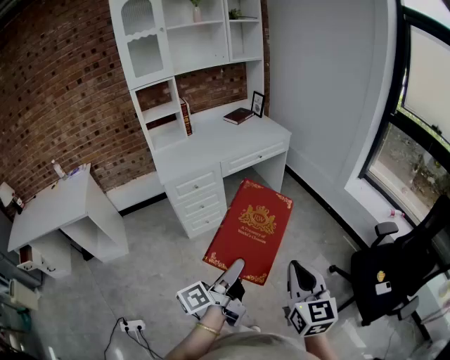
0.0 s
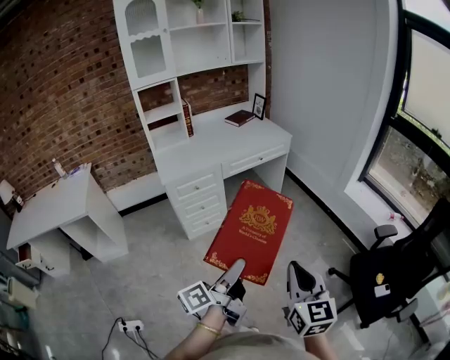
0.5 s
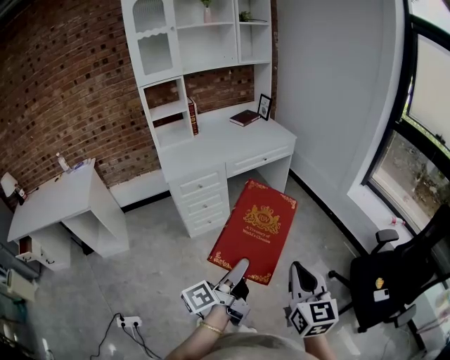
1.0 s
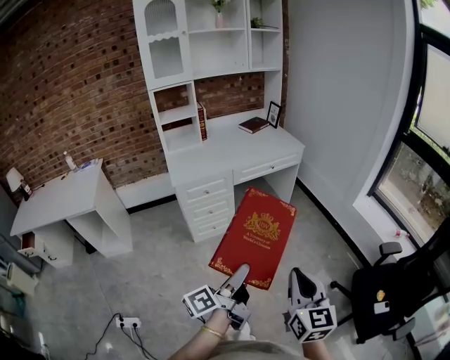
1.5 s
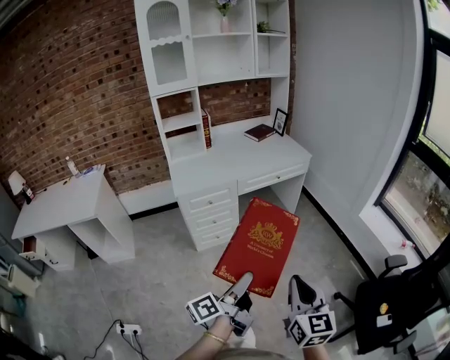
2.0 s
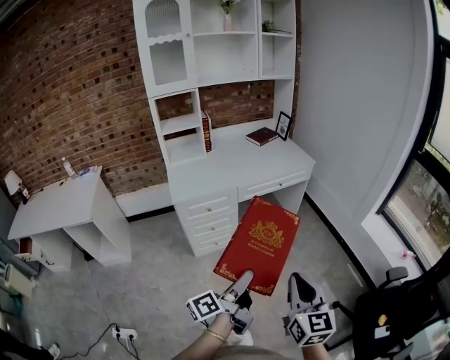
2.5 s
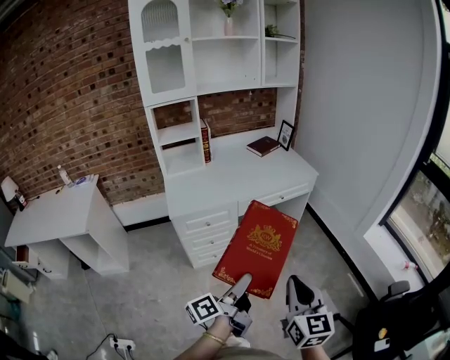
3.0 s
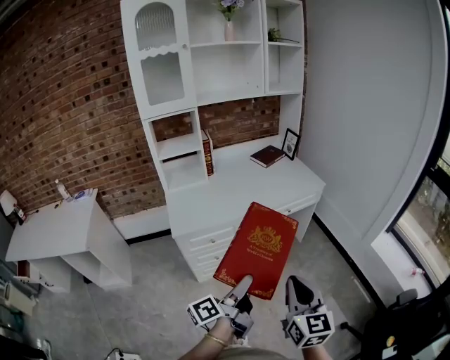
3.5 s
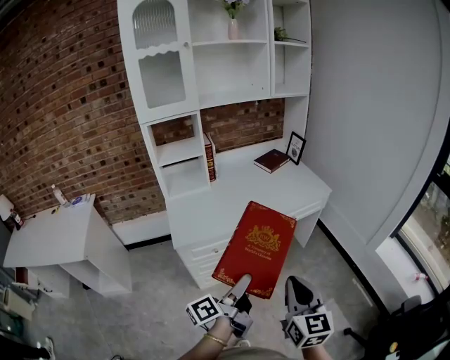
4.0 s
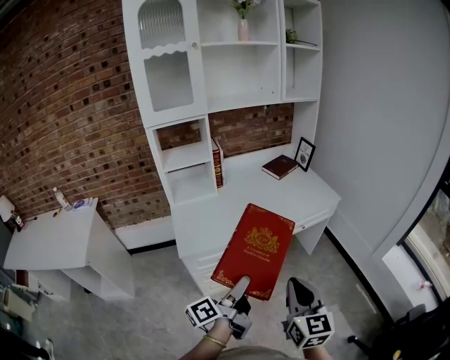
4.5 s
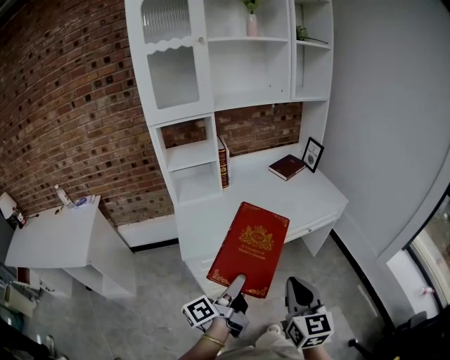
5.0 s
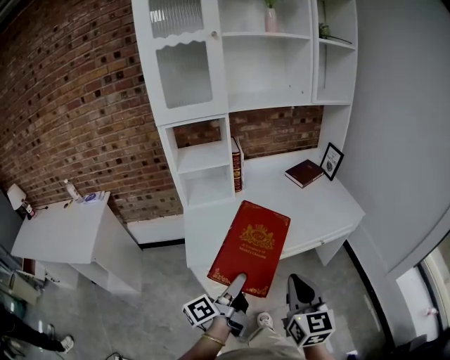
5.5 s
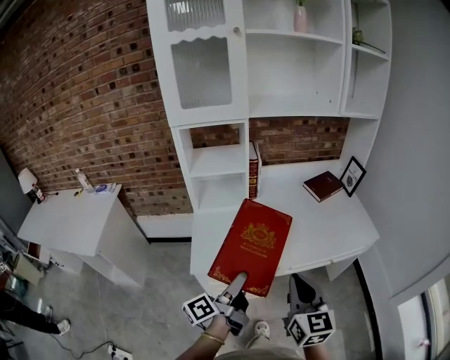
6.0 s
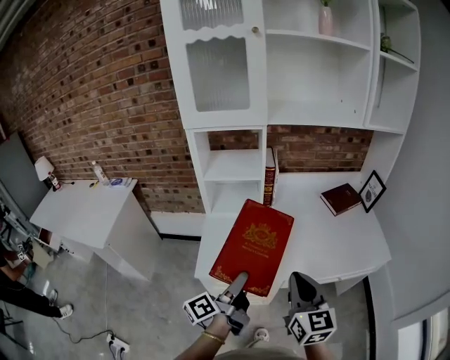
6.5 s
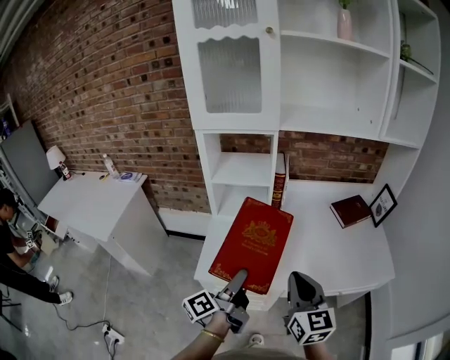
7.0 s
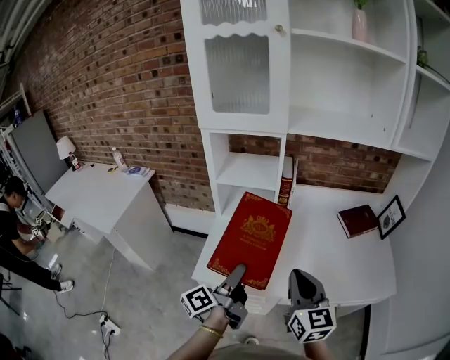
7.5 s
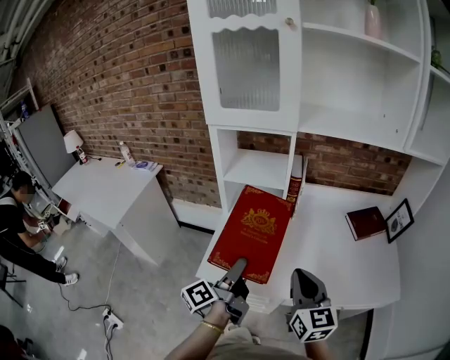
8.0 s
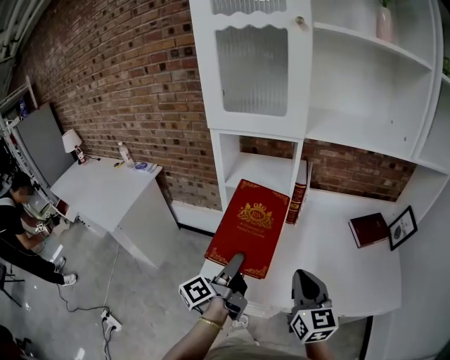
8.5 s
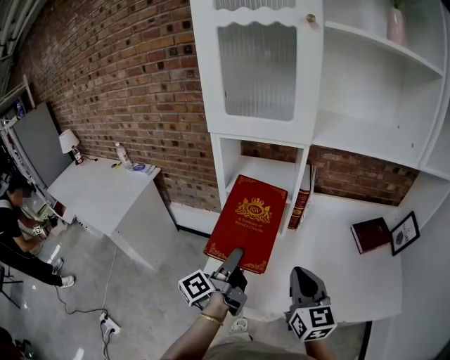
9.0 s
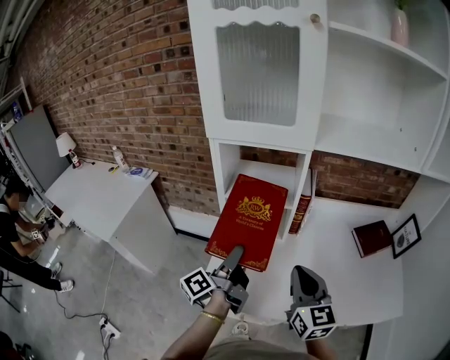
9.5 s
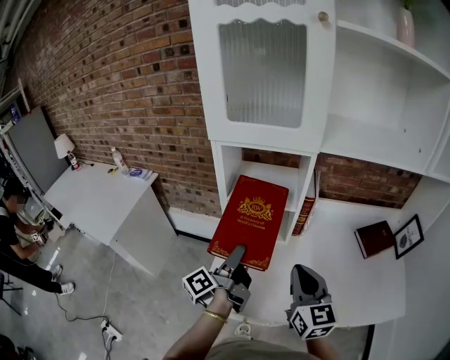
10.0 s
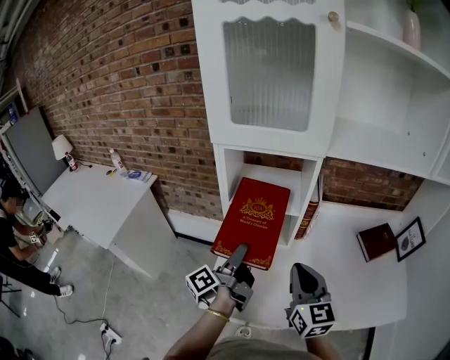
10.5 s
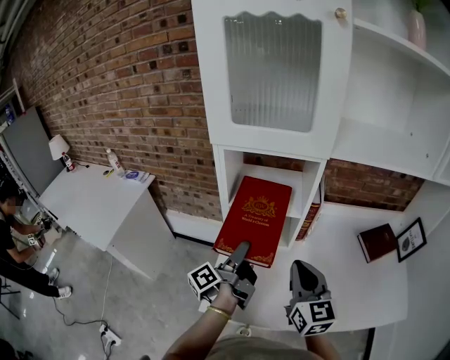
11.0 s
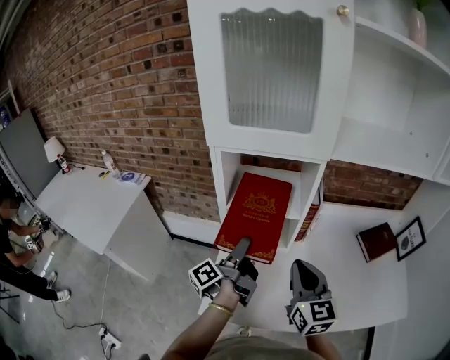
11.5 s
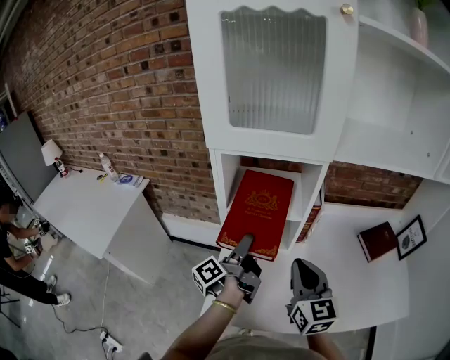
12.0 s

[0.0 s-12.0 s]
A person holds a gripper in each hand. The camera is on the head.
0.0 to 2.0 s: The right gripper shifts by about 5 cm.
2.0 to 4.0 s: The right gripper ends up about 30 cm from where it was.
4.0 to 6.0 s: The right gripper ends up roughly 25 cm from where it was.
6.0 to 8.0 s: The right gripper shifts by about 15 cm, and changes its angle by about 20 degrees.
8.0 to 10.0 s: The right gripper shifts by roughly 15 cm.
10.0 to 12.0 s: The right gripper moves approximately 5 cm.

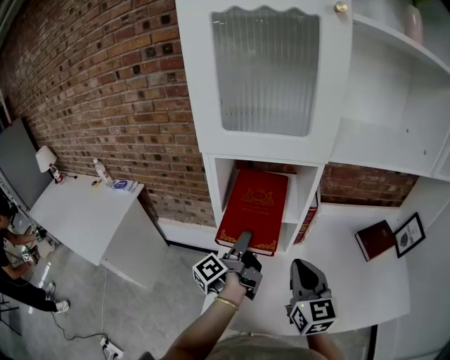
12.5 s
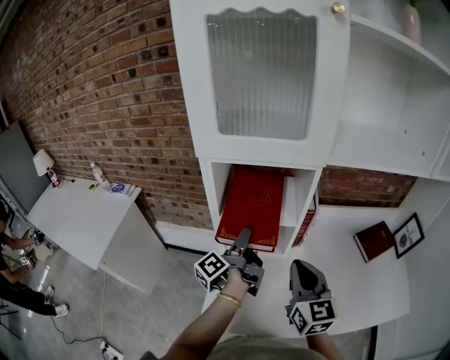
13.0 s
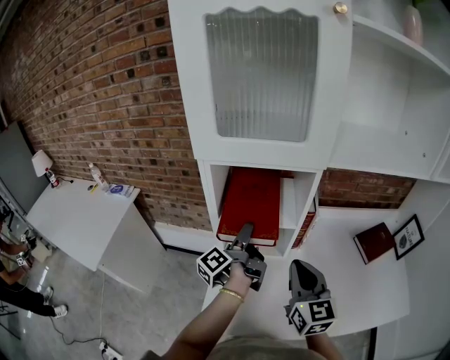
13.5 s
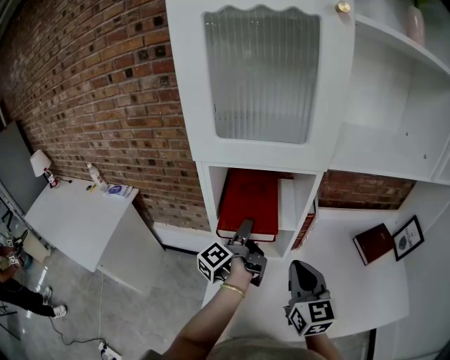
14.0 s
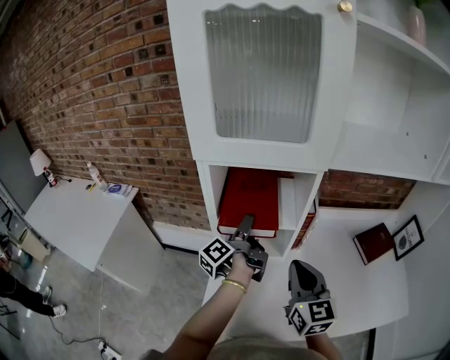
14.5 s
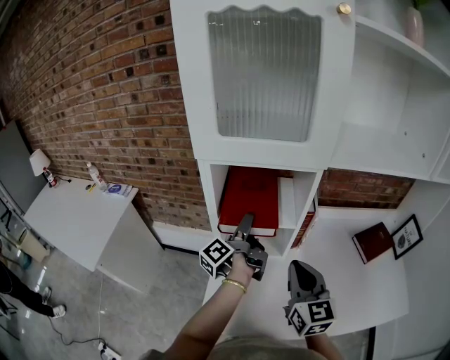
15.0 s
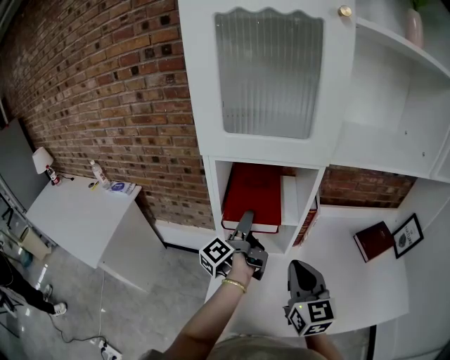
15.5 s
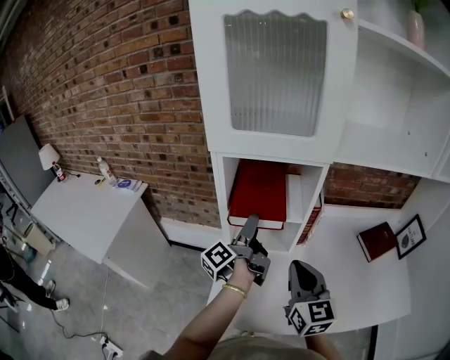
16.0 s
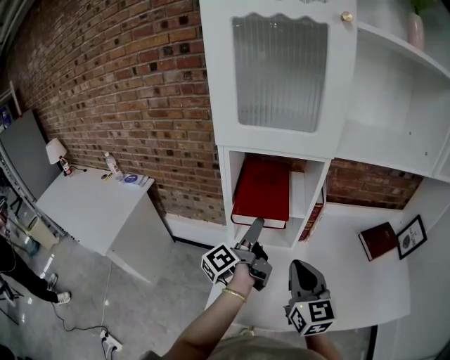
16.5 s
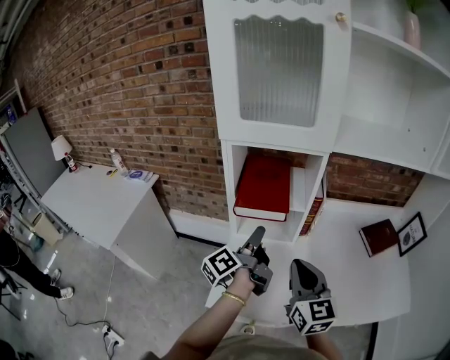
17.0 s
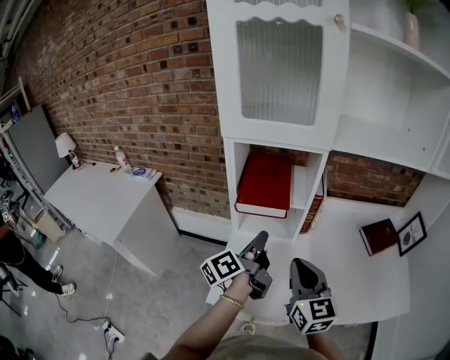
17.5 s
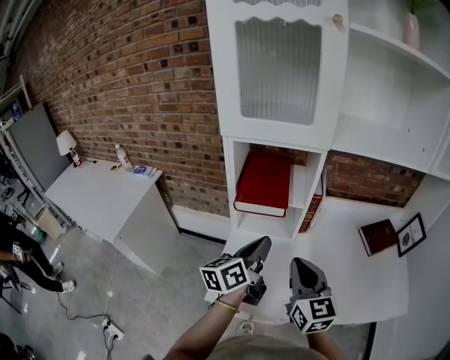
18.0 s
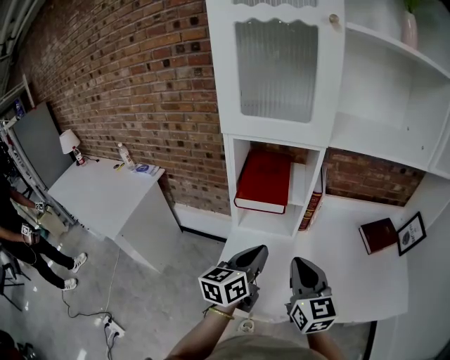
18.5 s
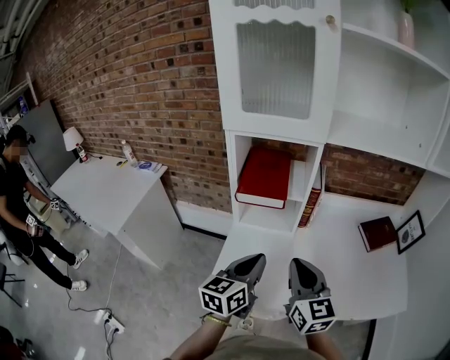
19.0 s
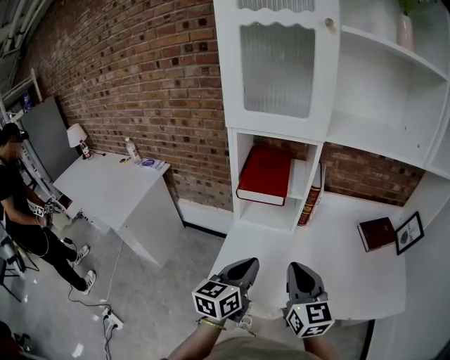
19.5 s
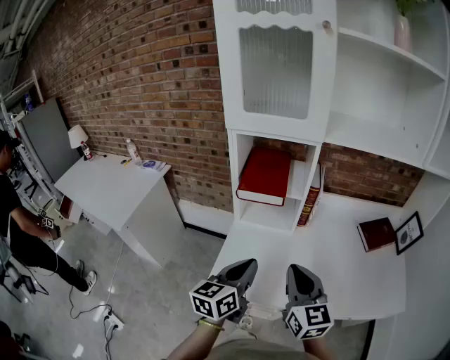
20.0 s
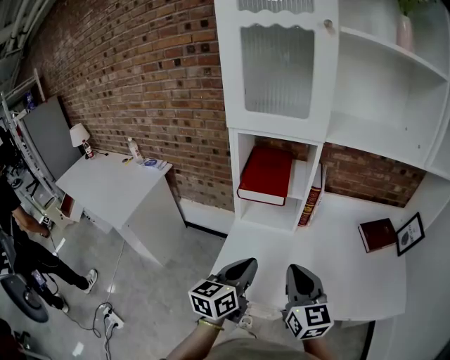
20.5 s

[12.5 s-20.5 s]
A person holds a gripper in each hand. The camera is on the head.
14.5 to 16.5 s: The right gripper ends up some 5 cm from where it was.
16.5 to 18.5 s: The right gripper moves about 5 cm.
18.5 to 20.5 s: The right gripper shifts by some 5 cm.

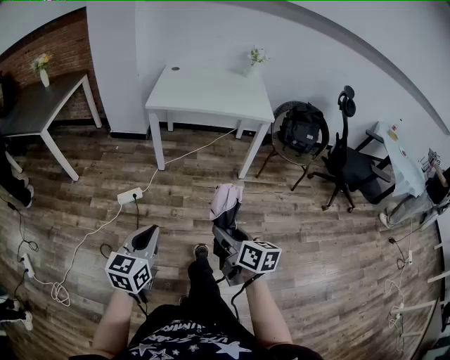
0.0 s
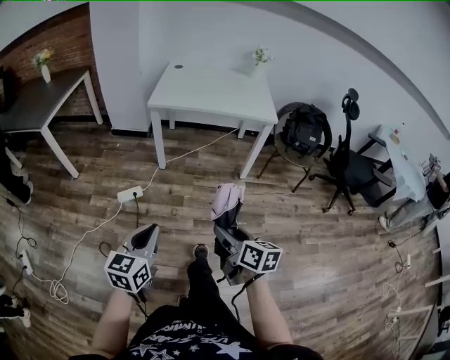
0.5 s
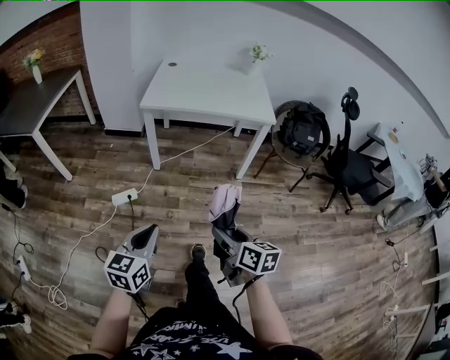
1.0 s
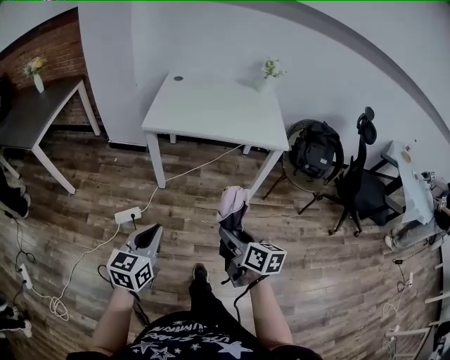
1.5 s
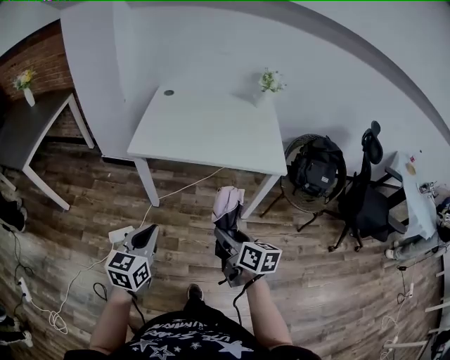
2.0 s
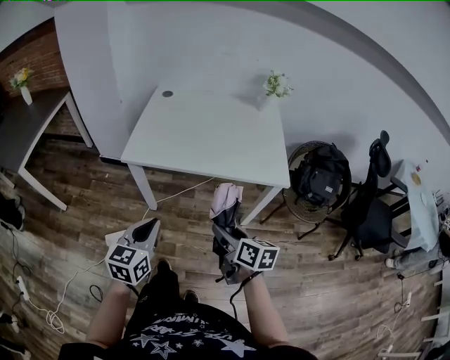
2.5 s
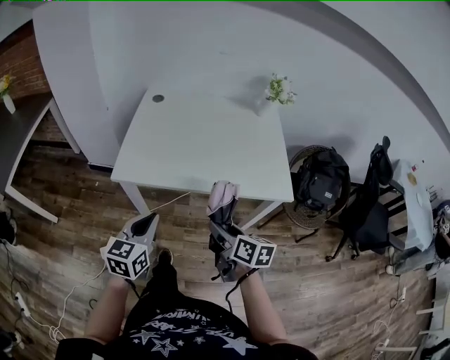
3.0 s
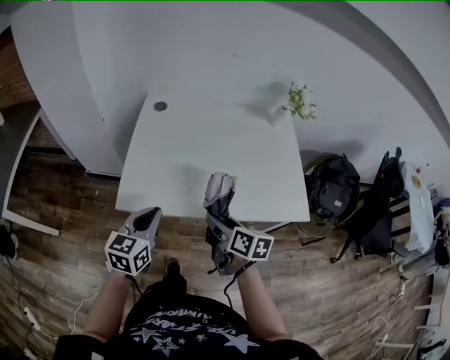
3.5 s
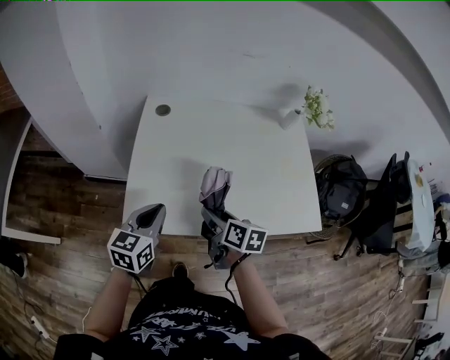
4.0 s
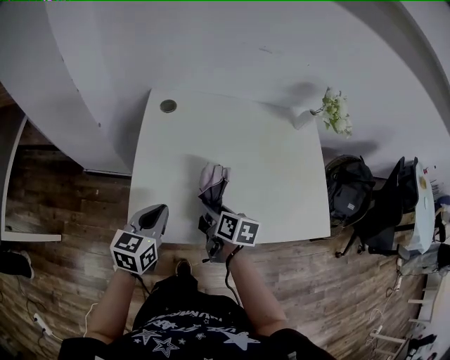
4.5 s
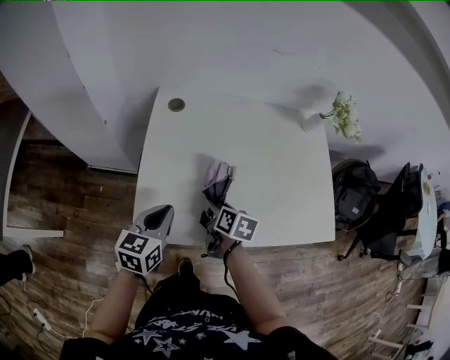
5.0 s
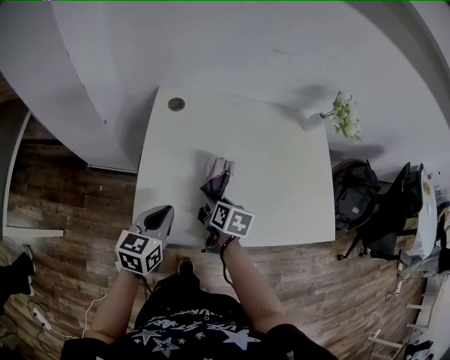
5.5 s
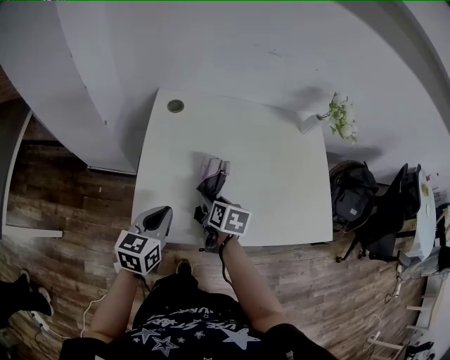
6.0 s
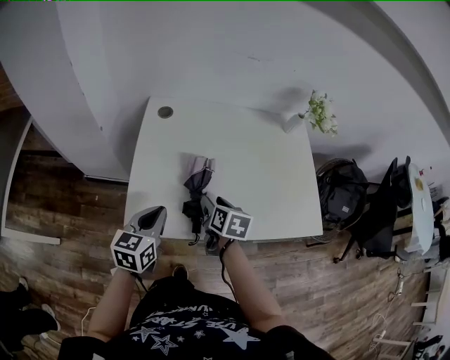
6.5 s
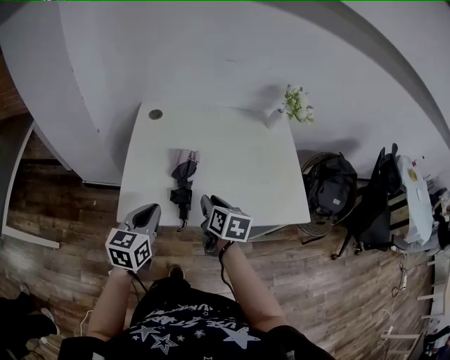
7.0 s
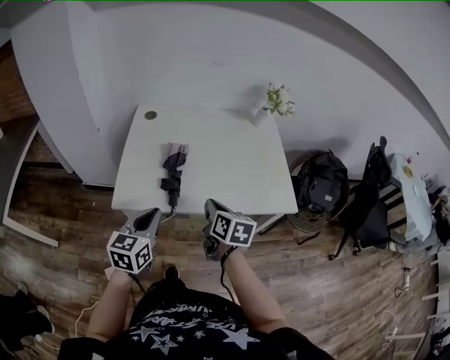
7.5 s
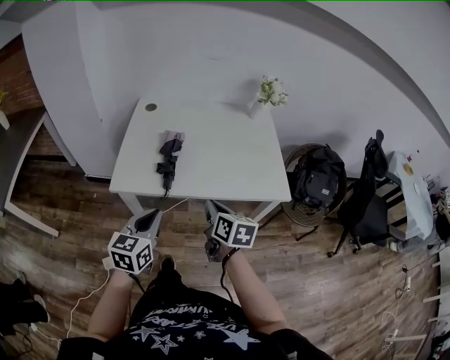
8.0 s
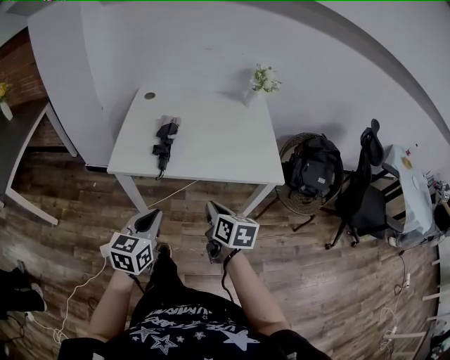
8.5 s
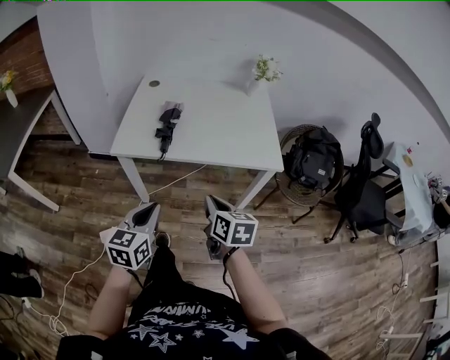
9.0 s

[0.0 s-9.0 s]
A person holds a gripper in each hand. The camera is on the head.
0.0 to 2.0 s: Both grippers move forward, some 35 cm.
2.0 to 4.5 s: Both grippers are carried forward, approximately 50 cm. The right gripper turns by about 20 degrees.
4.5 to 7.0 s: The right gripper travels upward, to the right and backward by approximately 10 cm, and closes its fingers, while the left gripper goes about 10 cm backward and upward.
7.0 to 9.0 s: The right gripper heads backward, covering about 30 cm, and closes its fingers, while the left gripper moves backward and to the right, approximately 30 cm.
